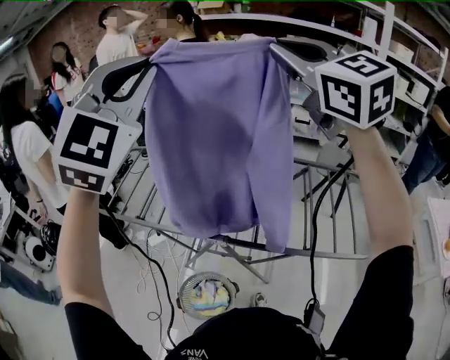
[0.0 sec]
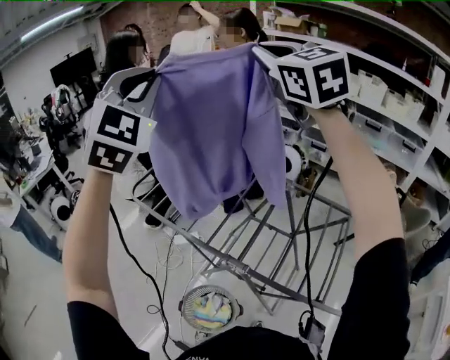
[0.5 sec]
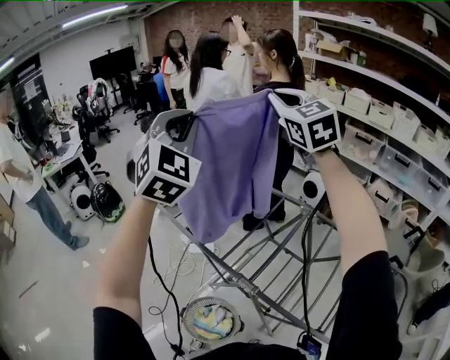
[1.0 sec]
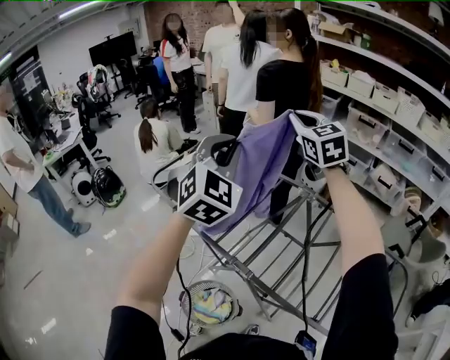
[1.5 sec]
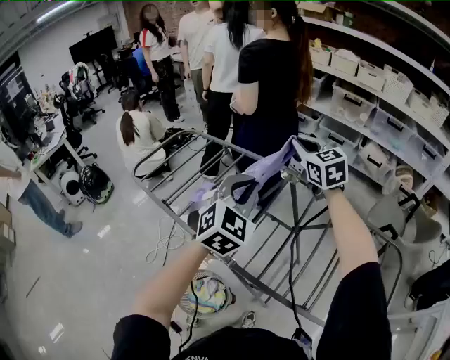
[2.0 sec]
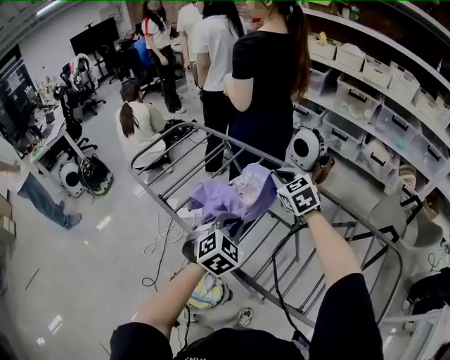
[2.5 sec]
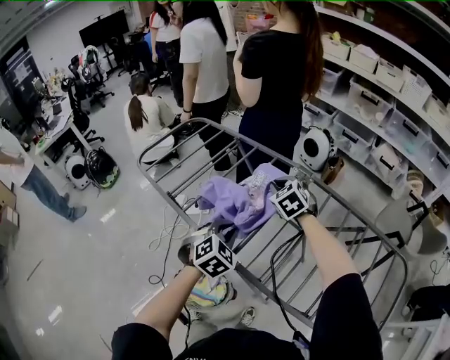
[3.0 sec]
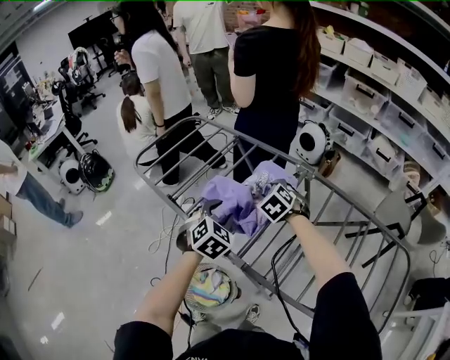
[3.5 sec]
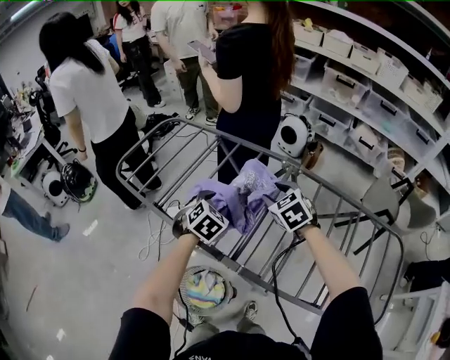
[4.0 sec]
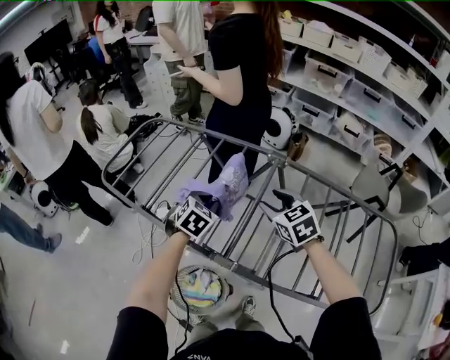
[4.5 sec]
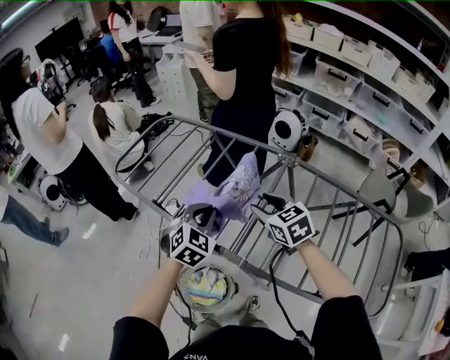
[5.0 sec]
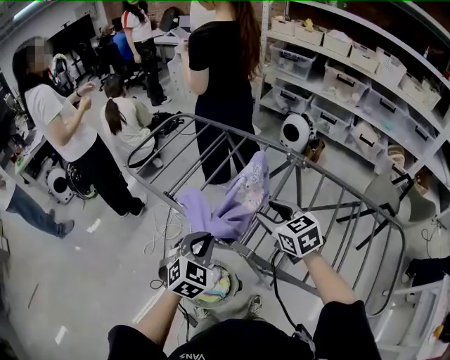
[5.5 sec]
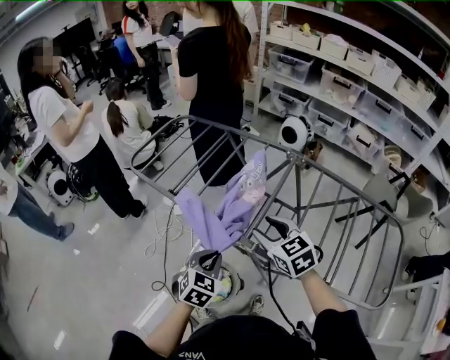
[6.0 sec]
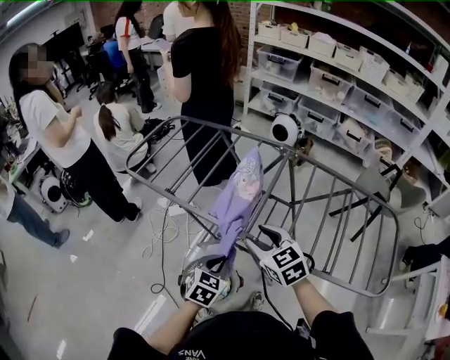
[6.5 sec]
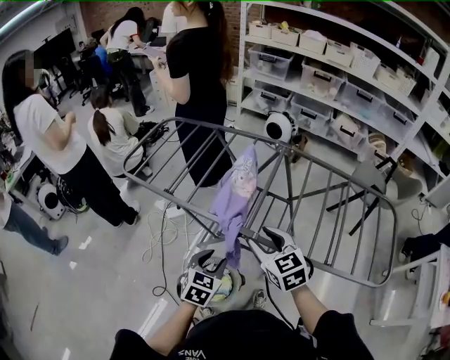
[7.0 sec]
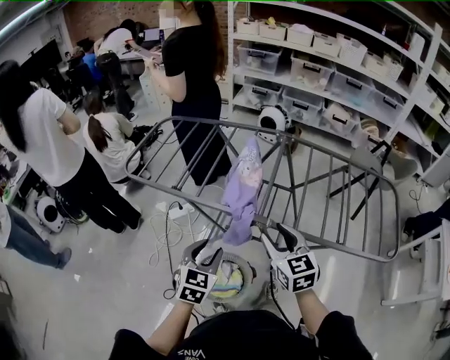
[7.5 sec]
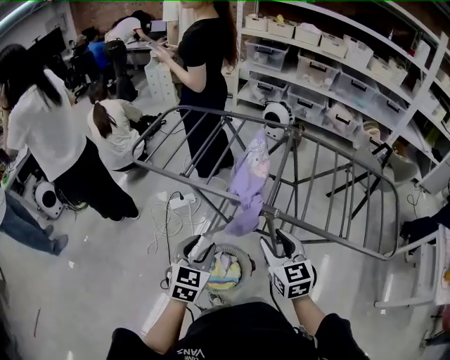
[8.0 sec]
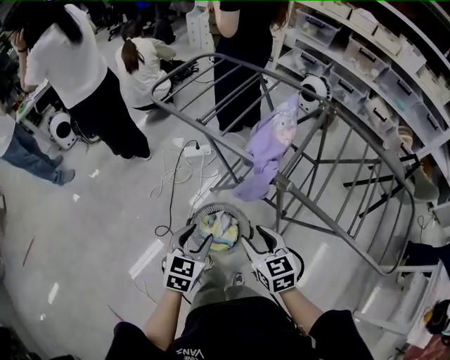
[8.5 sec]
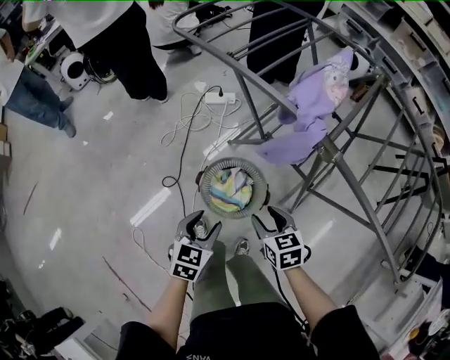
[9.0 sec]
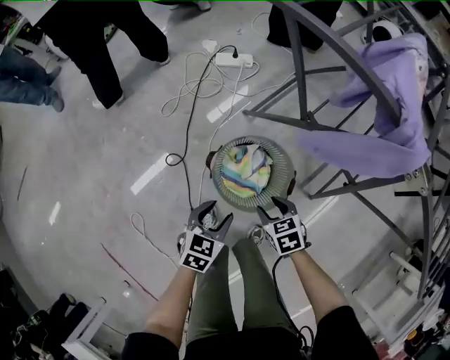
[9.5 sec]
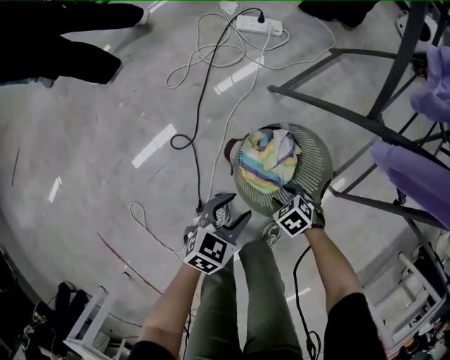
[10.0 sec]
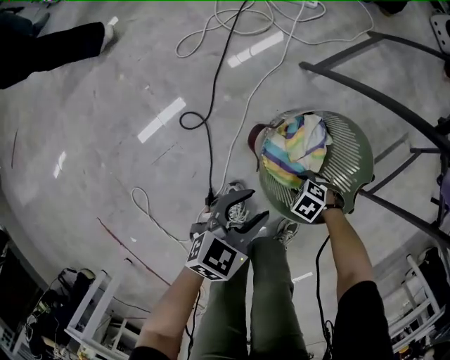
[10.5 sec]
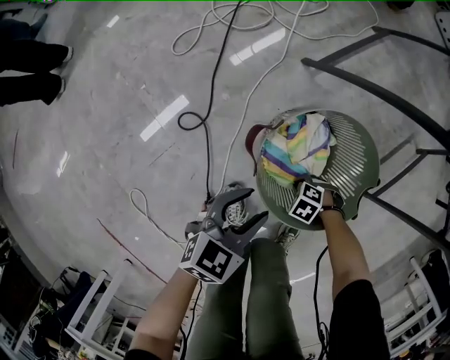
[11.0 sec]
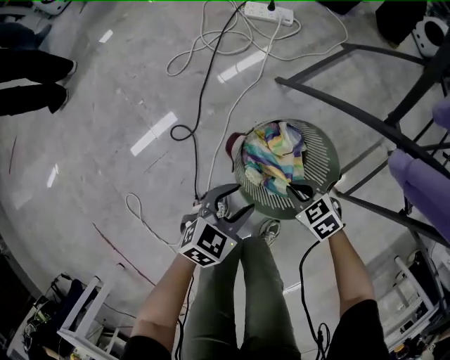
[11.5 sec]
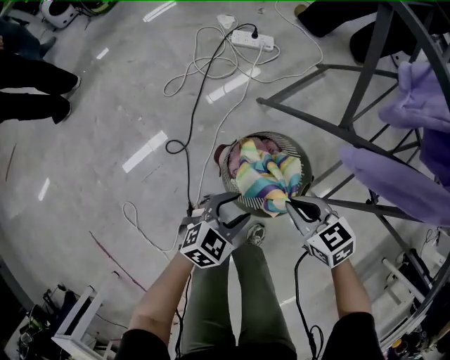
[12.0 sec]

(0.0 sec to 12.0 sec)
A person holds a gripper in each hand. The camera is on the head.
0.0 sec - 2.0 sec: Both grippers move downward, approximately 30 cm. The left gripper swivels about 30 degrees. The right gripper changes its angle by about 20 degrees.
2.0 sec - 4.0 sec: The left gripper goes about 25 cm downward and to the left, angles its fingers downward, by roughly 30 degrees, and opens its fingers, while the right gripper moves downward, some 20 cm, swivels approximately 30 degrees, and opens.
4.0 sec - 6.0 sec: The right gripper heads backward and to the left, covering roughly 20 cm. The left gripper moves backward, about 25 cm, and closes its fingers.
6.0 sec - 8.0 sec: The left gripper goes about 15 cm to the left and backward, and opens up. Meanwhile the right gripper heads backward, covering about 15 cm, and rotates some 30 degrees.
8.0 sec - 10.0 sec: The two grippers go about 60 cm downward. The left gripper rotates approximately 30 degrees, while the right gripper tips its fingers downward by about 50 degrees.
10.0 sec - 12.0 sec: The right gripper moves upward, roughly 25 cm, rotates approximately 30 degrees, and closes up; the left gripper goes approximately 5 cm upward.

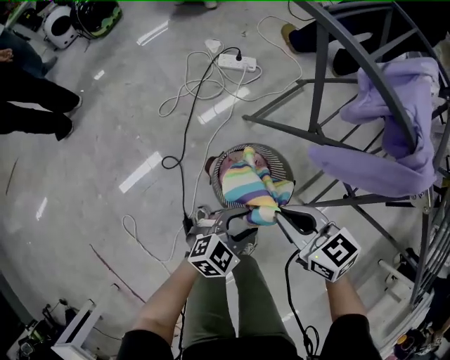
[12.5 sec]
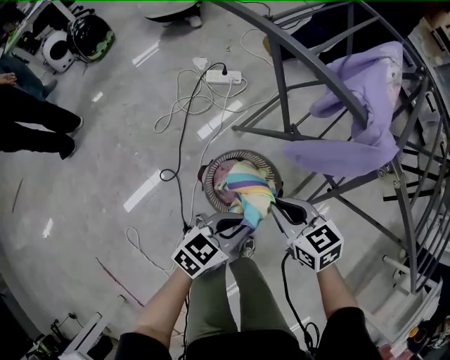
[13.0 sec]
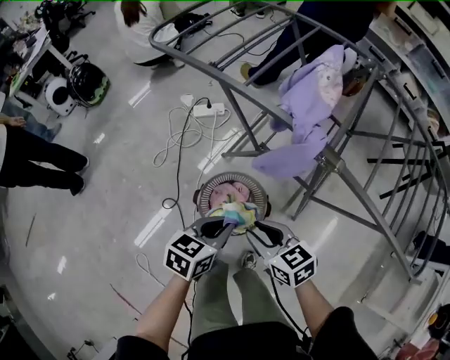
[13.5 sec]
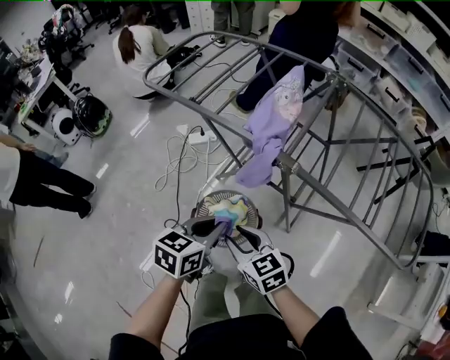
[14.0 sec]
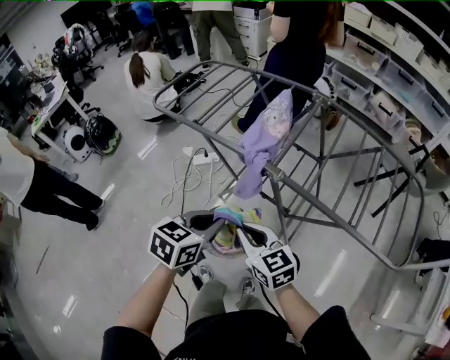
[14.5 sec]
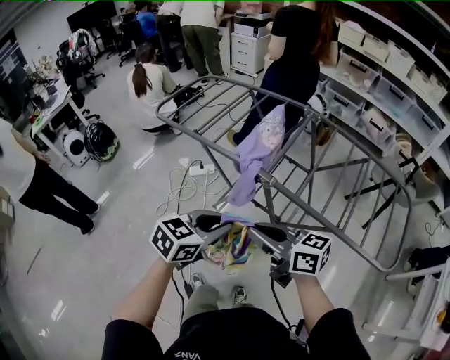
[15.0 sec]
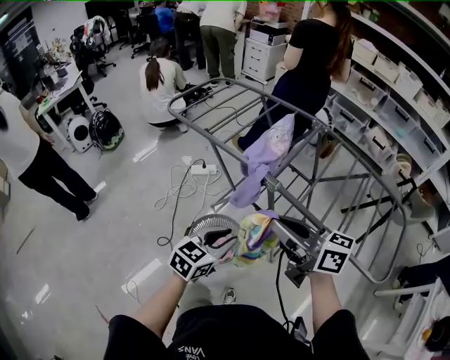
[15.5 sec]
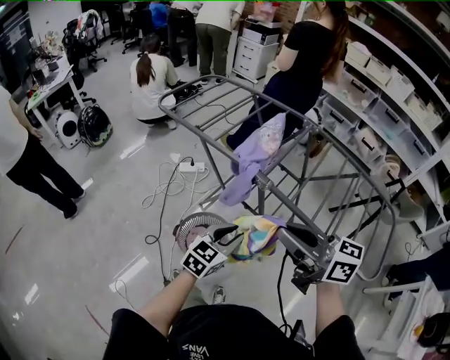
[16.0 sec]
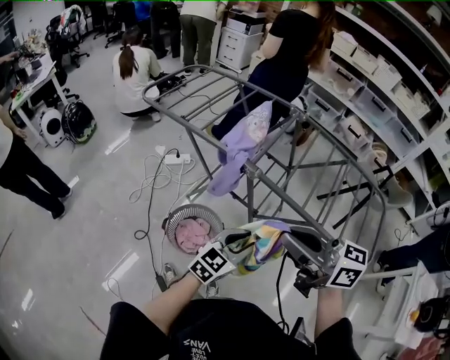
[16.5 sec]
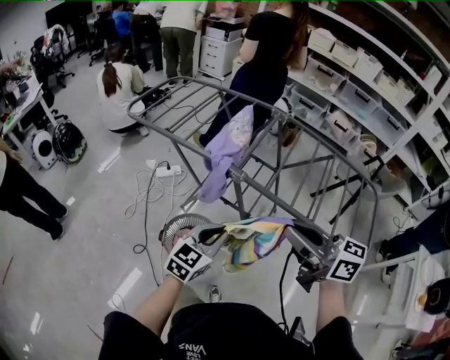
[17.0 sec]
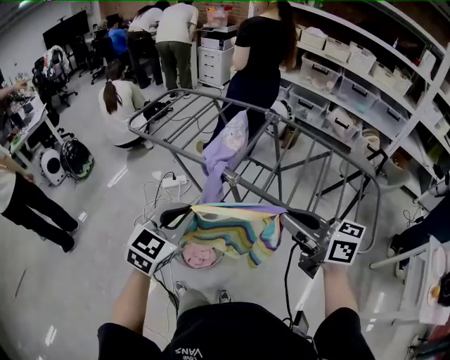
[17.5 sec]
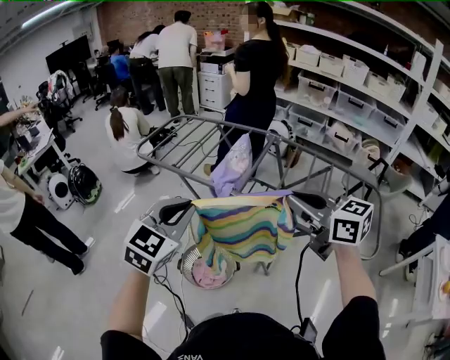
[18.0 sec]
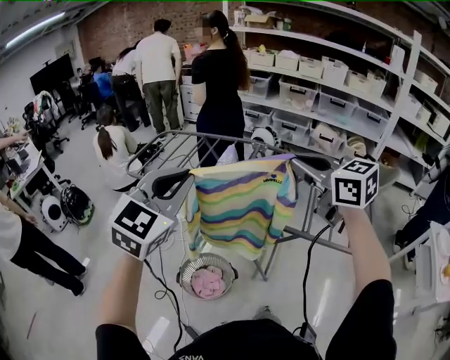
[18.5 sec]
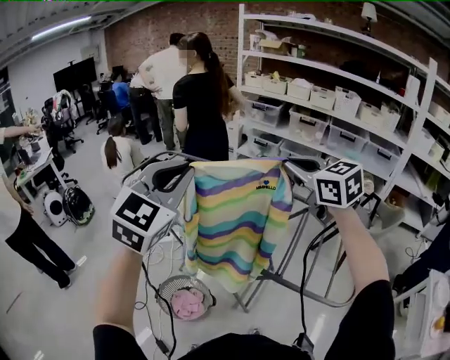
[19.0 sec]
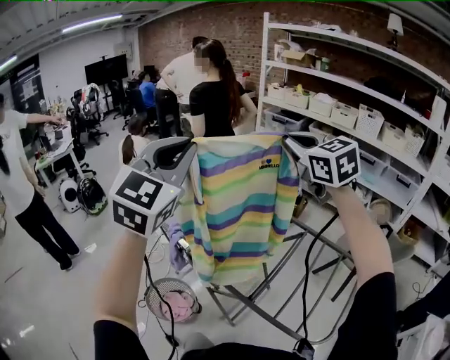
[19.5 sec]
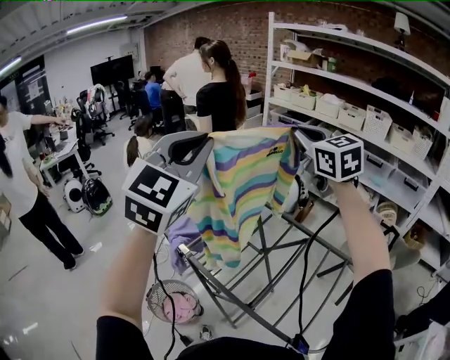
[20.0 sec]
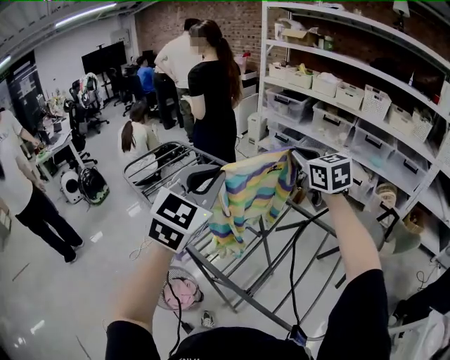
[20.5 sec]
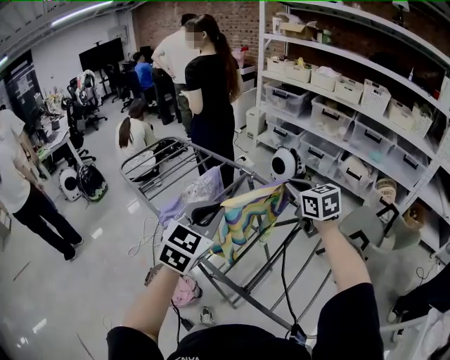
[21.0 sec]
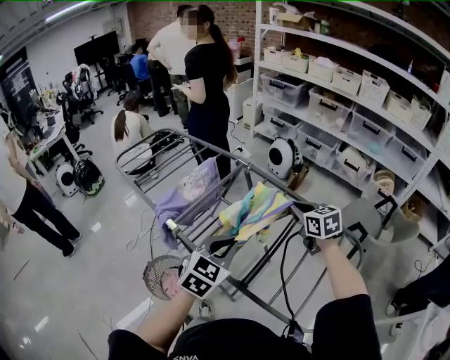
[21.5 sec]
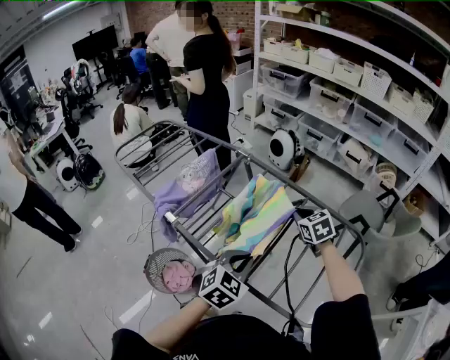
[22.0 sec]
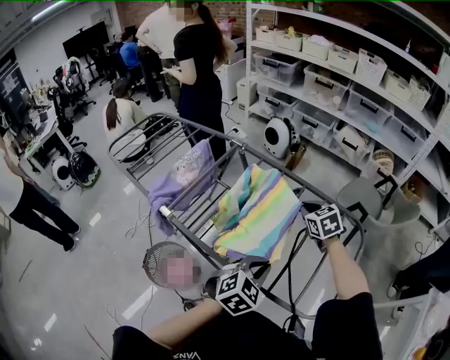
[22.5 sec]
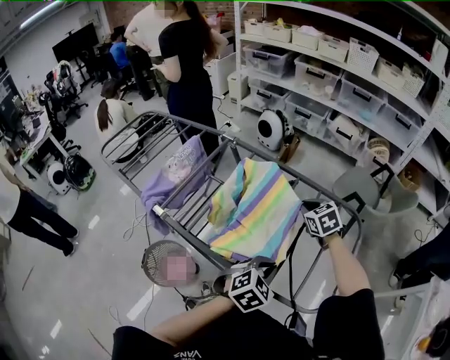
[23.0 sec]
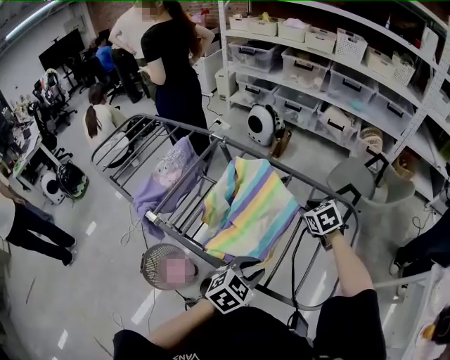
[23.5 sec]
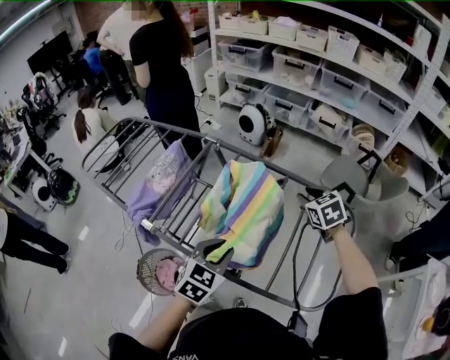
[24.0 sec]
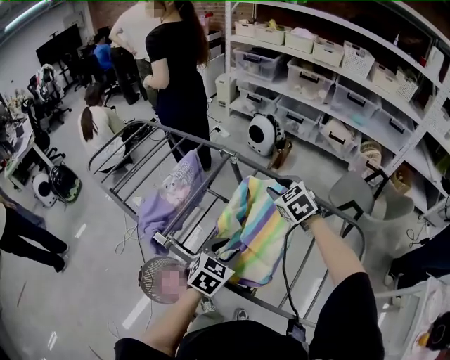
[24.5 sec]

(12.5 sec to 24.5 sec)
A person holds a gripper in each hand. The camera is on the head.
12.5 sec - 14.5 sec: The right gripper moves upward and to the right, some 25 cm, changes its angle by approximately 30 degrees, and opens, then closes again. The left gripper is displaced upward by some 35 cm, and closes its fingers.
14.5 sec - 16.5 sec: The right gripper travels upward, to the right and backward by about 25 cm, and turns by approximately 30 degrees. The left gripper heads to the right and backward, covering about 15 cm, swivels some 30 degrees, and opens up.
16.5 sec - 18.5 sec: The left gripper travels upward by some 35 cm, rotates some 30 degrees, and closes its fingers. Meanwhile the right gripper heads upward, forward and to the right, covering about 20 cm, and rotates some 40 degrees.
18.5 sec - 20.5 sec: The right gripper travels forward and to the right by some 35 cm. Meanwhile the left gripper goes roughly 30 cm to the right and forward.
20.5 sec - 22.5 sec: The left gripper moves downward, to the right and backward, approximately 40 cm, and points its fingers roughly 30 degrees further downward. Meanwhile the right gripper travels downward and to the right by some 30 cm, and rotates roughly 30 degrees.
22.5 sec - 24.5 sec: The grippers both shift to the left and forward by roughly 15 cm. The right gripper opens up. The left gripper opens its fingers.

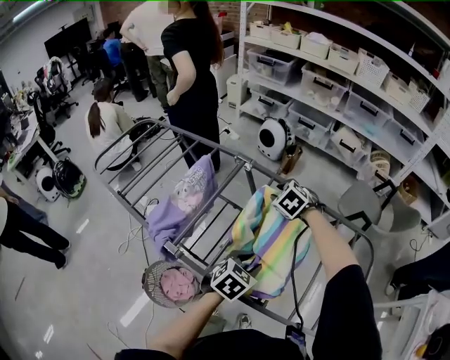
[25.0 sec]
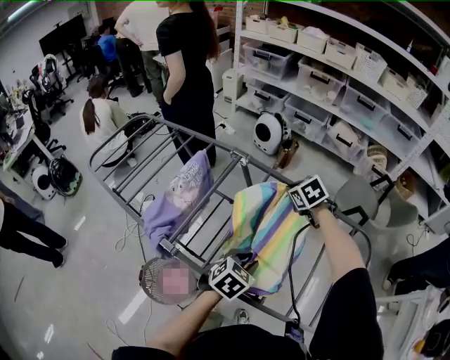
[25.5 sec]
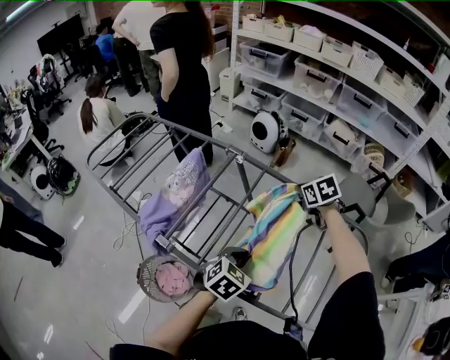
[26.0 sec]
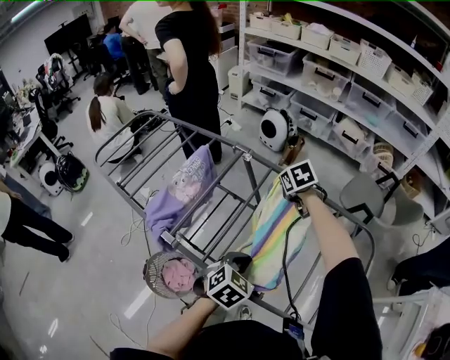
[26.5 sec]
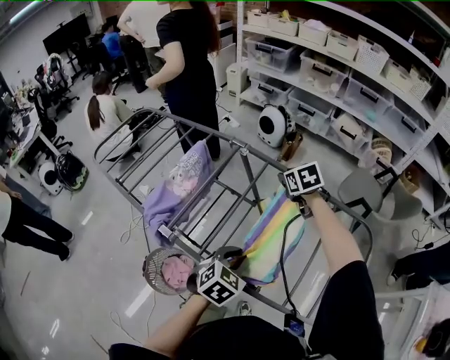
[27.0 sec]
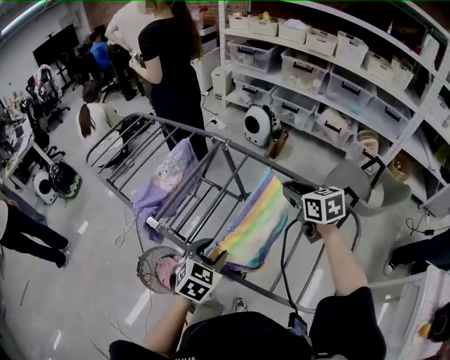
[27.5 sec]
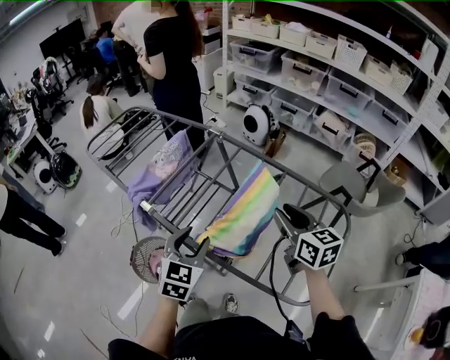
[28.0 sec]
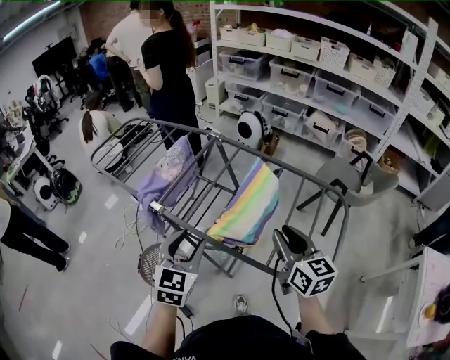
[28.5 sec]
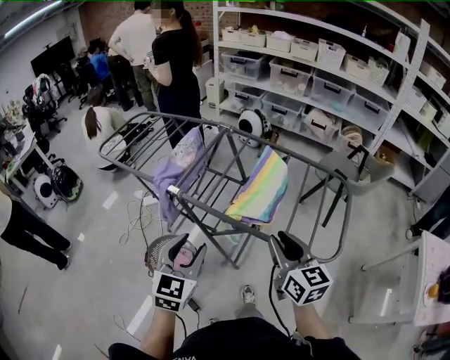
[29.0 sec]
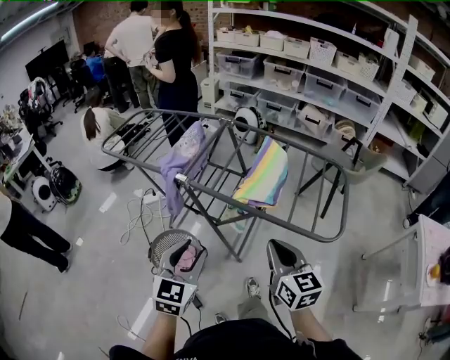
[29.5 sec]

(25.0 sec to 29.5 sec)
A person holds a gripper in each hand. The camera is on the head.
25.0 sec - 27.0 sec: The right gripper travels to the right by about 5 cm, swivels about 30 degrees, and closes, then opens again, while the left gripper closes up.
27.0 sec - 29.5 sec: The left gripper shifts roughly 30 cm backward, to the left and upward, tips its fingers upward by roughly 30 degrees, and opens up; the right gripper heads backward, covering approximately 50 cm, tips its fingers upward by approximately 40 degrees, and closes.
